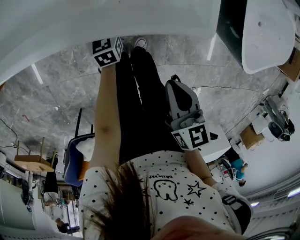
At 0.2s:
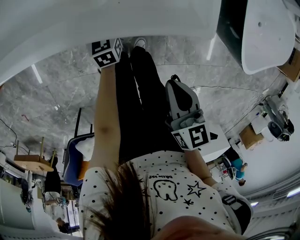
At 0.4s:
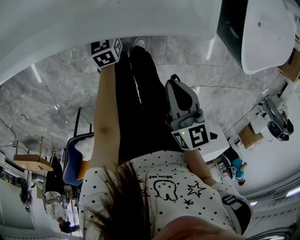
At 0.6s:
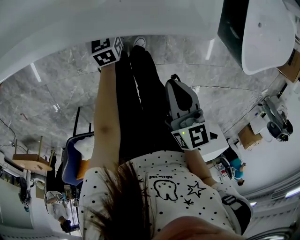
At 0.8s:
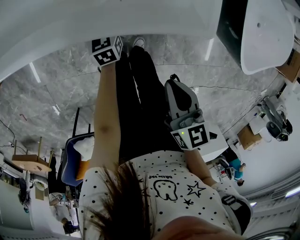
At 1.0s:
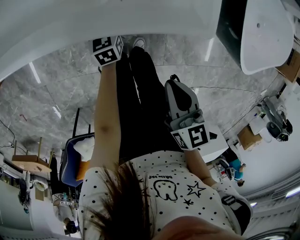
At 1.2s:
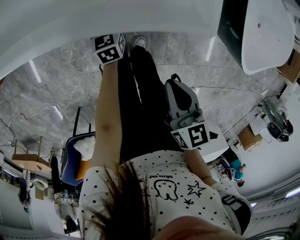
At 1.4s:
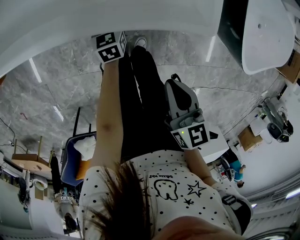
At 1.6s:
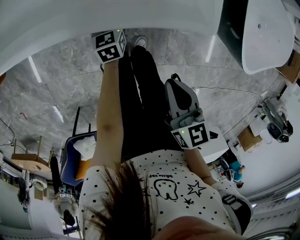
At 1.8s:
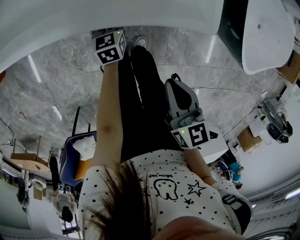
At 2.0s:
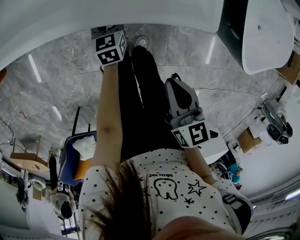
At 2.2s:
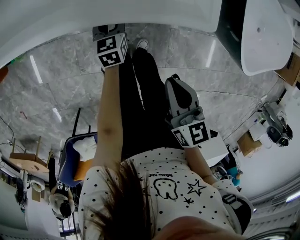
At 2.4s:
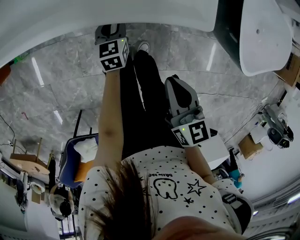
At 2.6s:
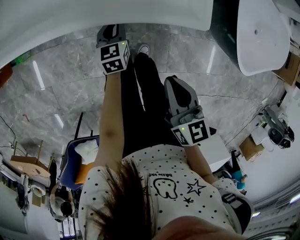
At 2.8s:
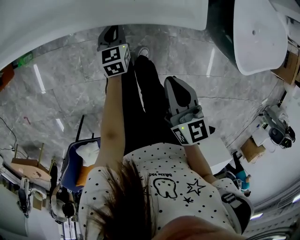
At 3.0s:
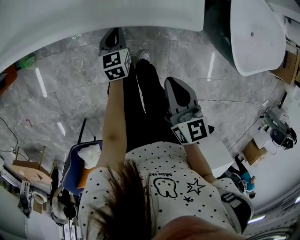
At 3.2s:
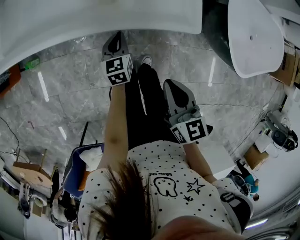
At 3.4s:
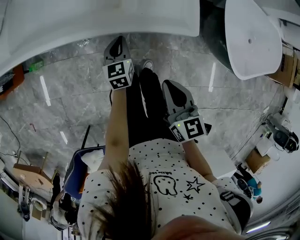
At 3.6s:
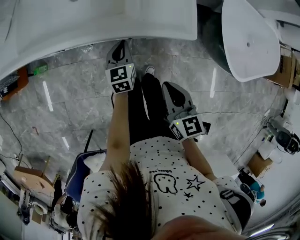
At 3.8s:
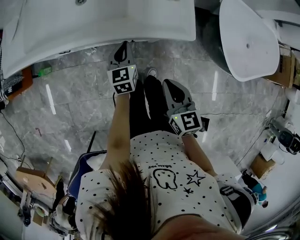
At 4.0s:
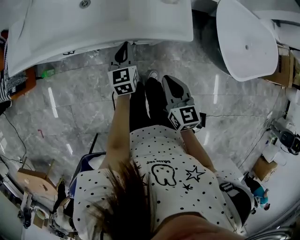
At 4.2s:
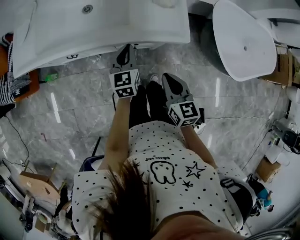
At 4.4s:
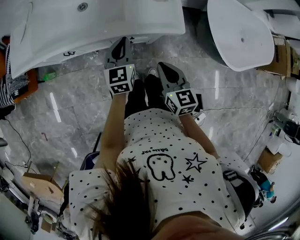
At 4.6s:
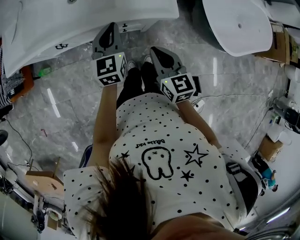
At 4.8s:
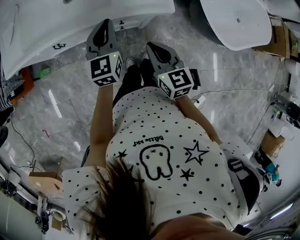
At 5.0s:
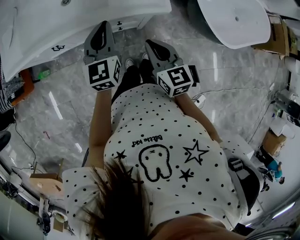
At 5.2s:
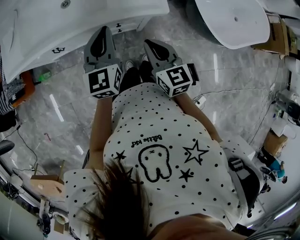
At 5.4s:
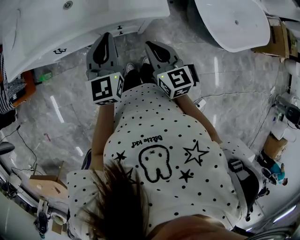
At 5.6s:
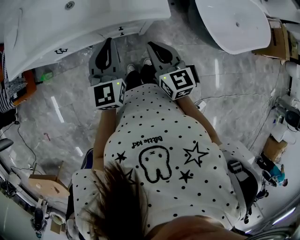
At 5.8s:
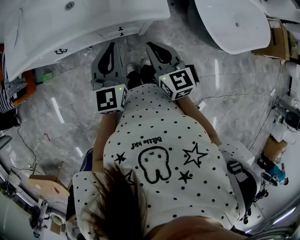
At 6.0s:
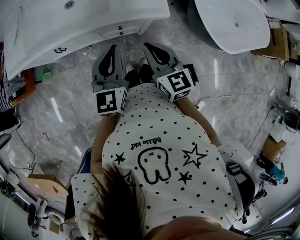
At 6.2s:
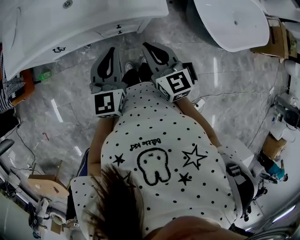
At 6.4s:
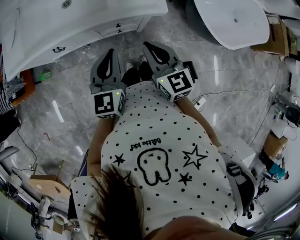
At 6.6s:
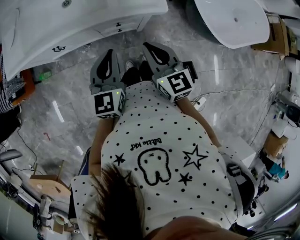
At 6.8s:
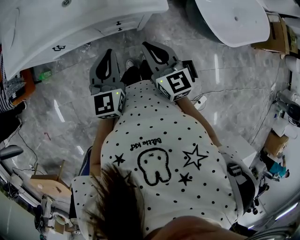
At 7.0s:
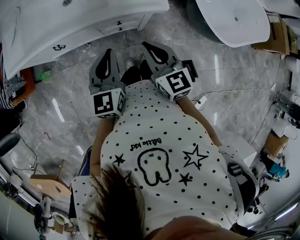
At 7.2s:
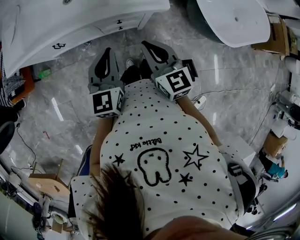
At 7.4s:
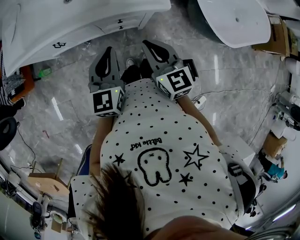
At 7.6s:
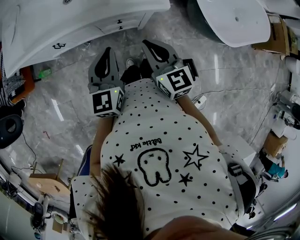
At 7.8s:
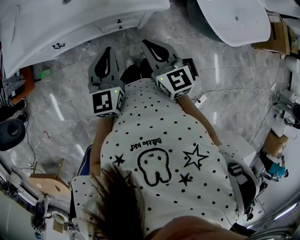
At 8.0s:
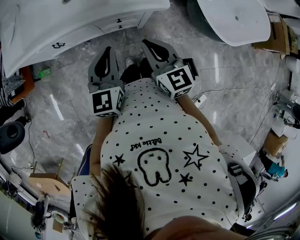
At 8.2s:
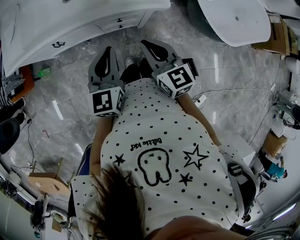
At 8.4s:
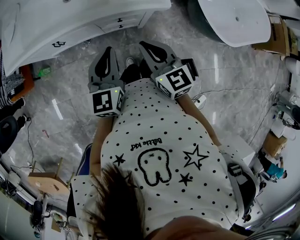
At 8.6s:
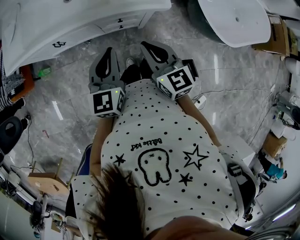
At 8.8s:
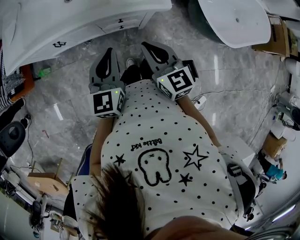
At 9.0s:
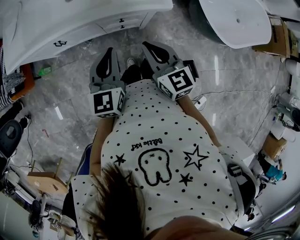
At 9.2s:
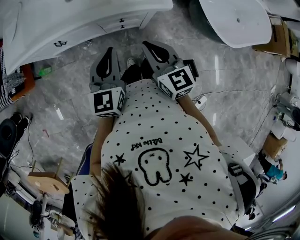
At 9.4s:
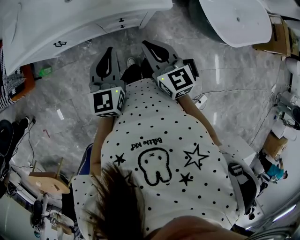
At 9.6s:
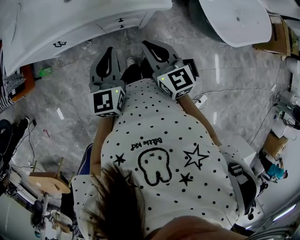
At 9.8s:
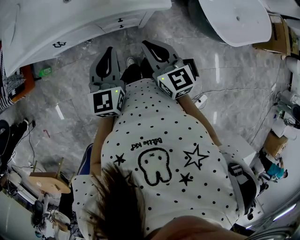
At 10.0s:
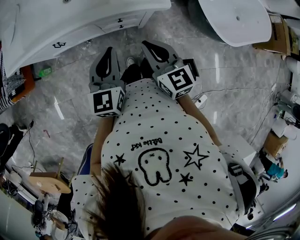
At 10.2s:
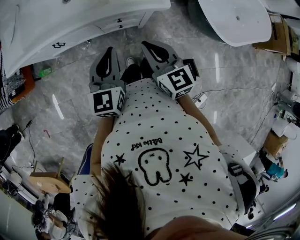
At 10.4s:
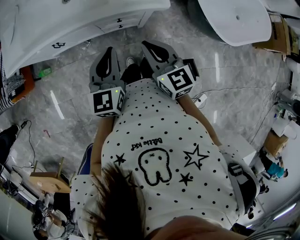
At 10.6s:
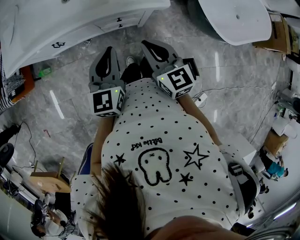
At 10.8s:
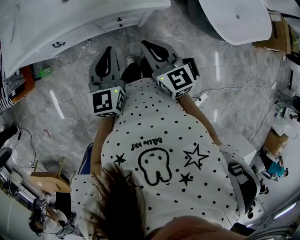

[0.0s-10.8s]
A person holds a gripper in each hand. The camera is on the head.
0.0s to 1.6s: There are only small adjustments of the grippers.
1.6s to 3.0s: The right gripper heads upward, covering roughly 5 cm; the left gripper shifts some 10 cm upward, and closes.
3.0s to 4.6s: The left gripper is displaced upward by approximately 30 cm, and swivels roughly 20 degrees; the right gripper goes roughly 10 cm upward and to the left.
4.6s to 6.2s: The right gripper shifts roughly 5 cm upward, while the left gripper moves backward and upward, roughly 15 cm.
6.2s to 9.2s: The grippers stay close to where they were, moving slightly.
9.2s to 10.8s: The two grippers keep their place.

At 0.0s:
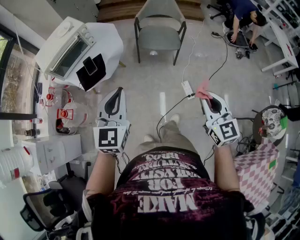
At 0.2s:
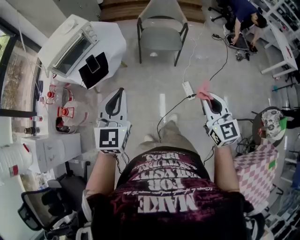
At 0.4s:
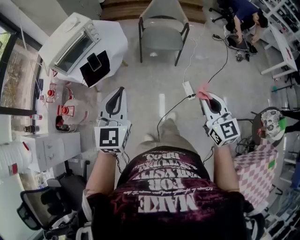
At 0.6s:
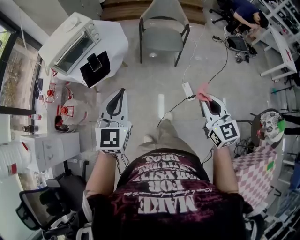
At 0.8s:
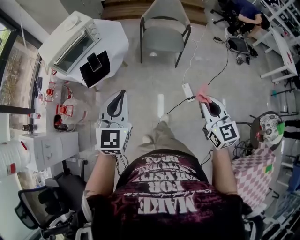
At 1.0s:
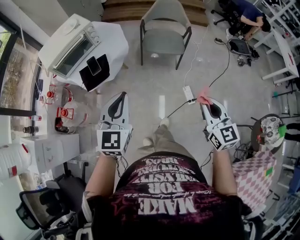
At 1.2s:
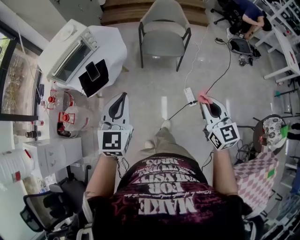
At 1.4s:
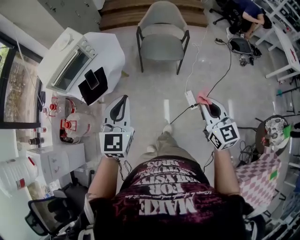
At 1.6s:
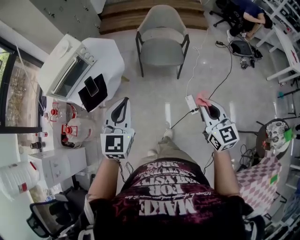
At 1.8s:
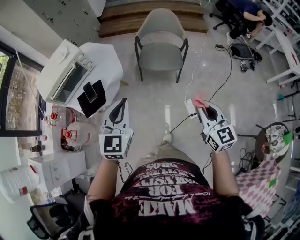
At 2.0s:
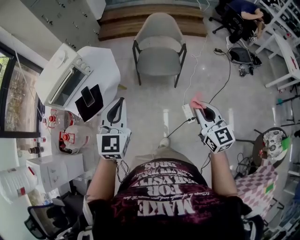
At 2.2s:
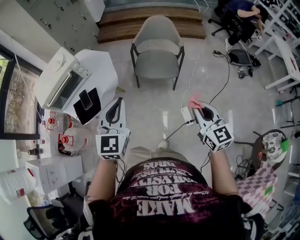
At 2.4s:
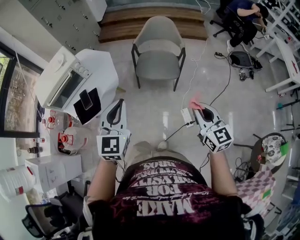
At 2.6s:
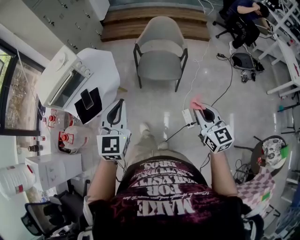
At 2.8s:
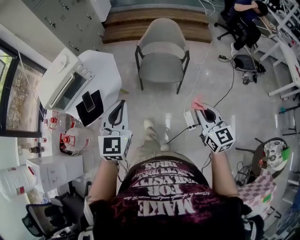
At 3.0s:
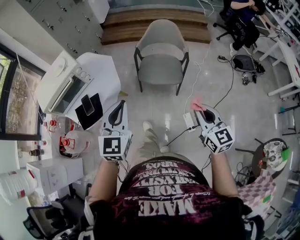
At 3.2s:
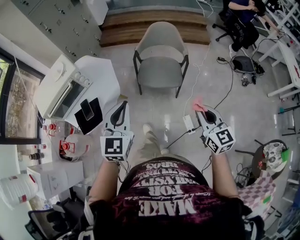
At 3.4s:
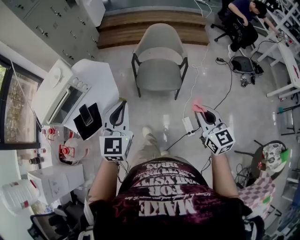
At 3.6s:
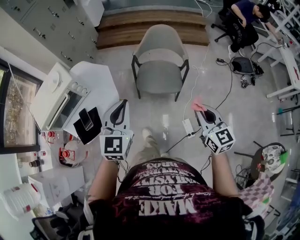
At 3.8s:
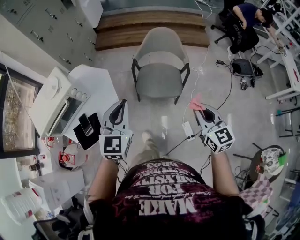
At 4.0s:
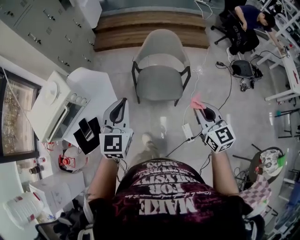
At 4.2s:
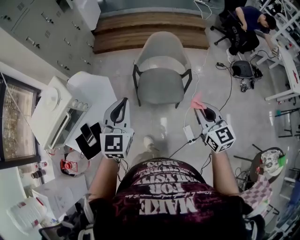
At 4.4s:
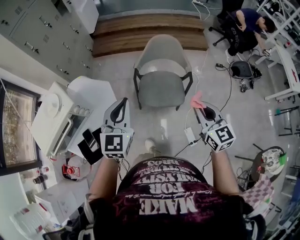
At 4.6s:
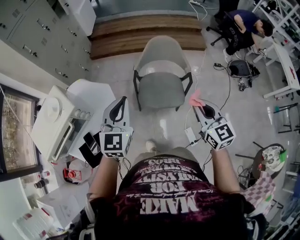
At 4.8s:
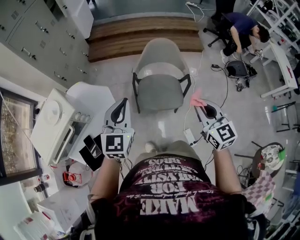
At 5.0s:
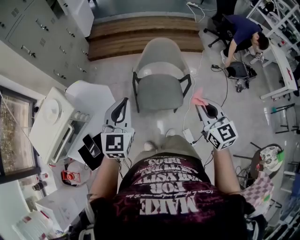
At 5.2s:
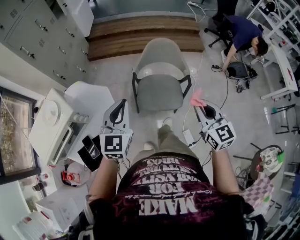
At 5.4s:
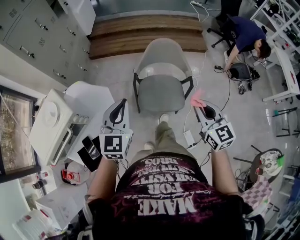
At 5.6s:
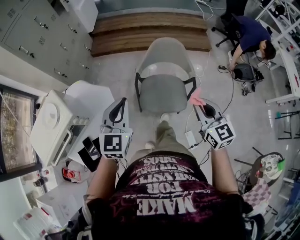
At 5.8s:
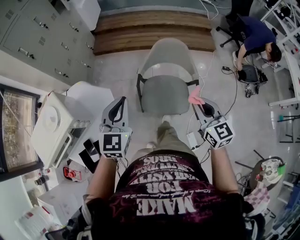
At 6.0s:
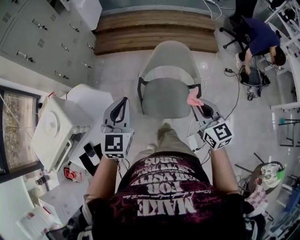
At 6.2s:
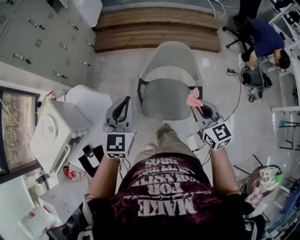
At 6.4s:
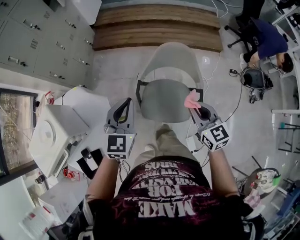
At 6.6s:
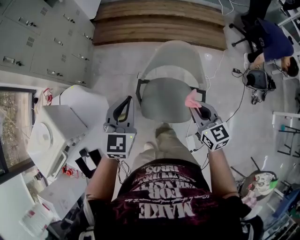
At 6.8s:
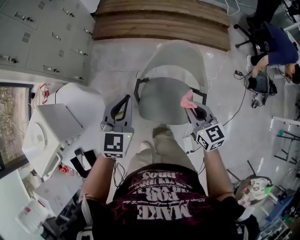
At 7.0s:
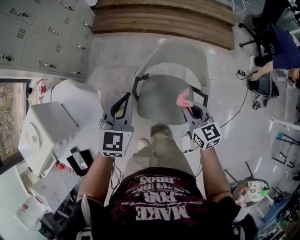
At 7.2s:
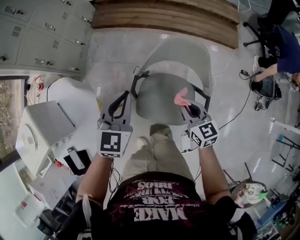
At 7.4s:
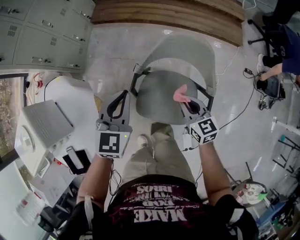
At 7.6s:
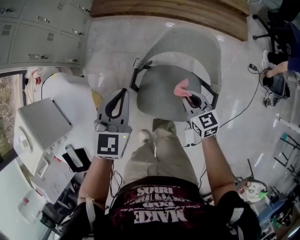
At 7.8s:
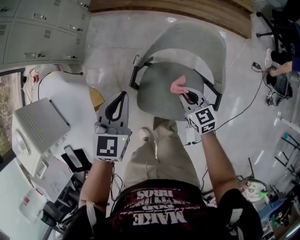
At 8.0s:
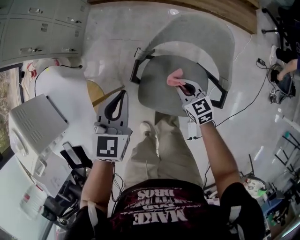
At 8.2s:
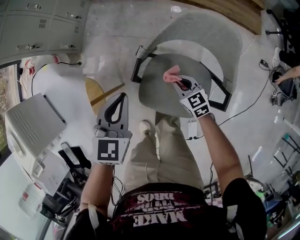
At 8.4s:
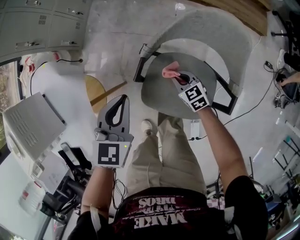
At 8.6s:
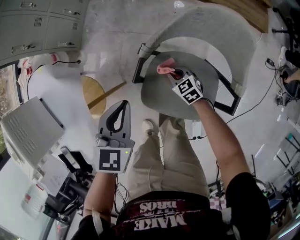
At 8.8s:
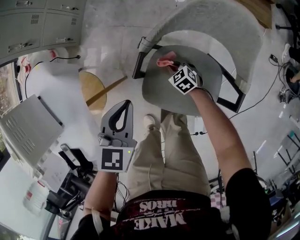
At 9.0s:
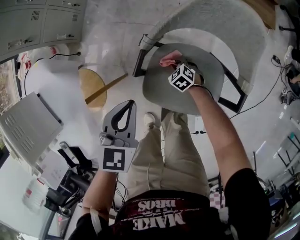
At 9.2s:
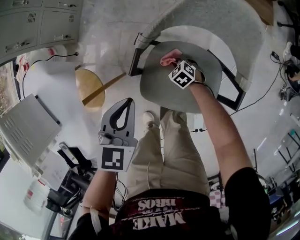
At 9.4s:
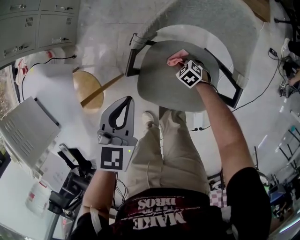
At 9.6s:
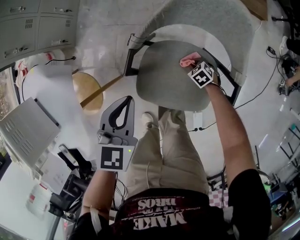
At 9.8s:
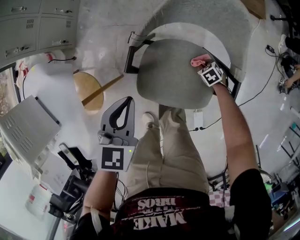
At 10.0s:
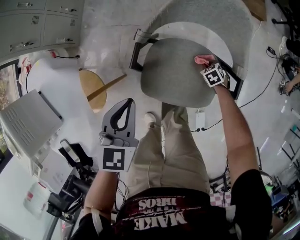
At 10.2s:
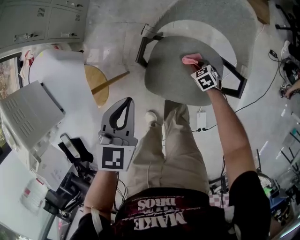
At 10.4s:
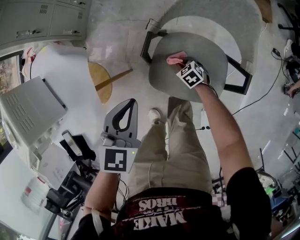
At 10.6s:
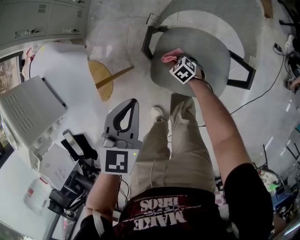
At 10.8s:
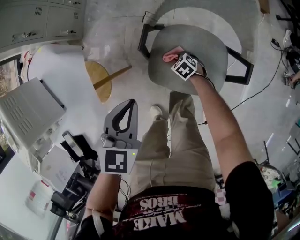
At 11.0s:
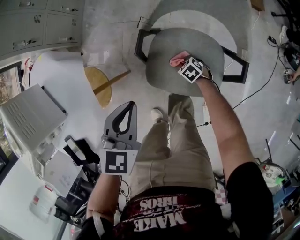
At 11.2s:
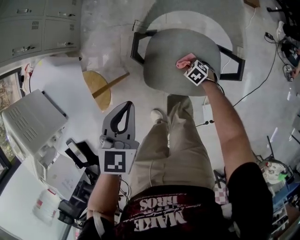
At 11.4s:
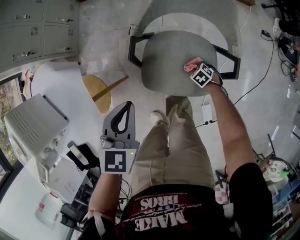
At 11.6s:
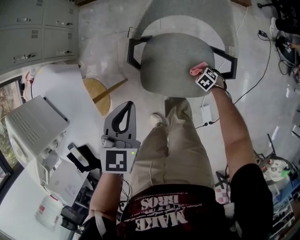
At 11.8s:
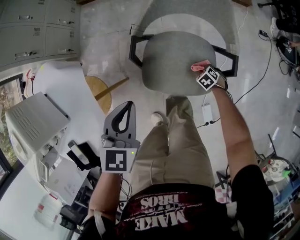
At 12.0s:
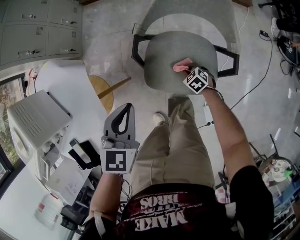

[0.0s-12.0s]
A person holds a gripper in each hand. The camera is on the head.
0.0s to 1.6s: The two grippers go about 10 cm forward.
1.6s to 3.0s: Both grippers move forward and to the right, some 15 cm.
3.0s to 4.4s: The grippers both shift forward by roughly 25 cm.
4.4s to 6.0s: The grippers both shift forward by about 15 cm.
6.0s to 7.6s: Both grippers move downward and forward, approximately 30 cm. The right gripper swivels about 20 degrees.
7.6s to 9.0s: The right gripper travels downward by some 35 cm, and tilts its fingers about 30 degrees downward, while the left gripper shifts approximately 15 cm downward.
9.0s to 10.4s: The left gripper shifts by about 10 cm.

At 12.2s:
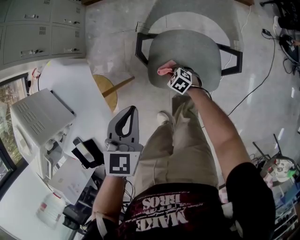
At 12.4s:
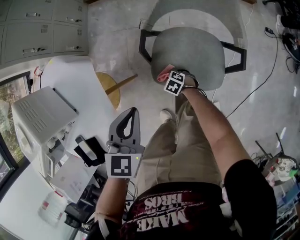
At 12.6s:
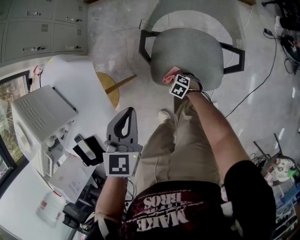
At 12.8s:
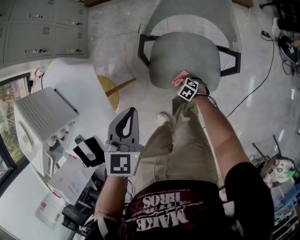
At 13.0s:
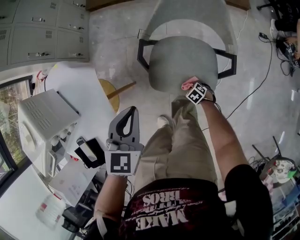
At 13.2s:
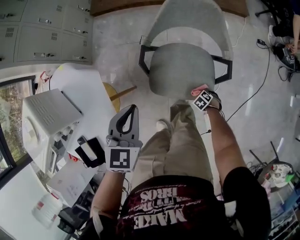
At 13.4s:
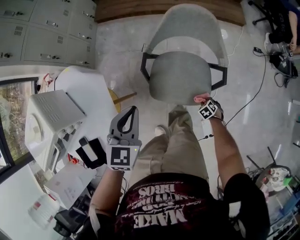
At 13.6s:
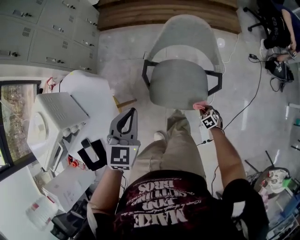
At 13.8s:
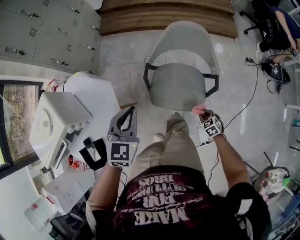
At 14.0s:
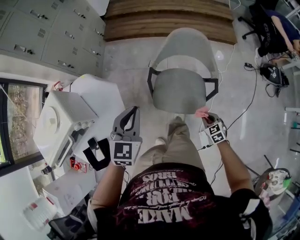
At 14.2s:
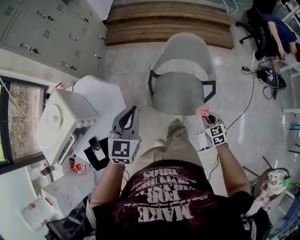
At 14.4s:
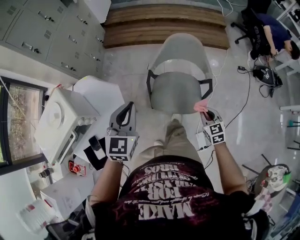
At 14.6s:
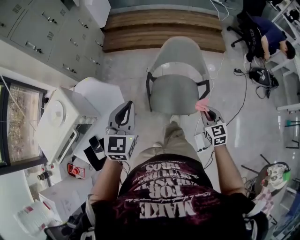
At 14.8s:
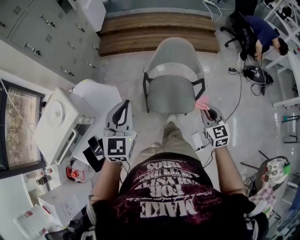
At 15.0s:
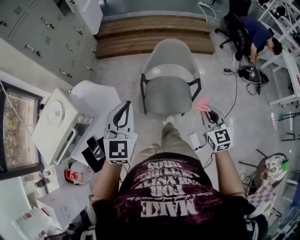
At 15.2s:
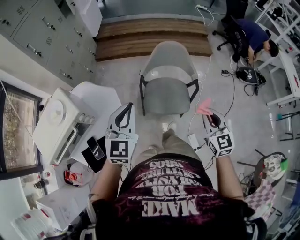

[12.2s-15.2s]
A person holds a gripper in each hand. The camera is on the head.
12.2s to 13.8s: The right gripper ends up roughly 30 cm from where it was. Meanwhile the left gripper is displaced upward by roughly 15 cm.
13.8s to 15.2s: The right gripper goes roughly 40 cm upward, and angles its fingers upward, by approximately 40 degrees; the left gripper goes about 20 cm upward and backward.
